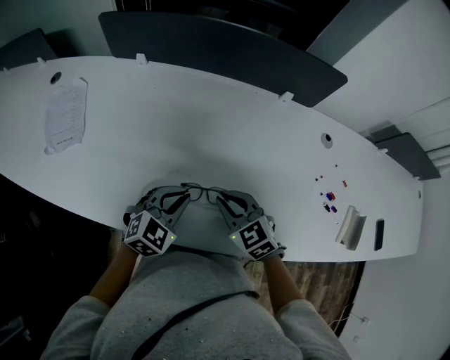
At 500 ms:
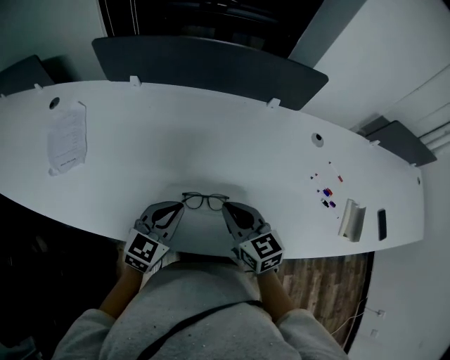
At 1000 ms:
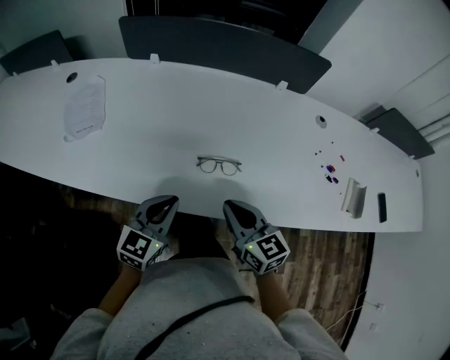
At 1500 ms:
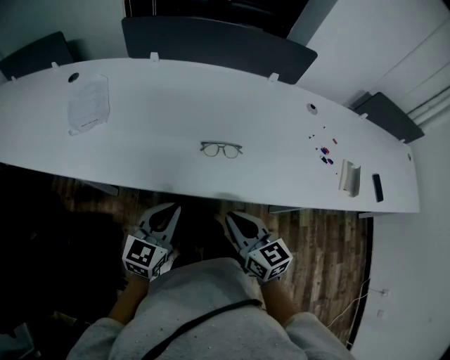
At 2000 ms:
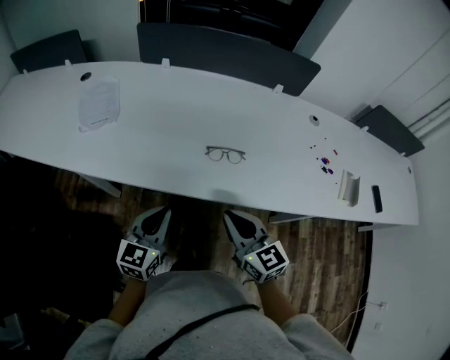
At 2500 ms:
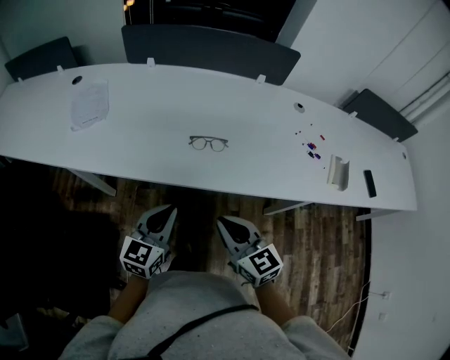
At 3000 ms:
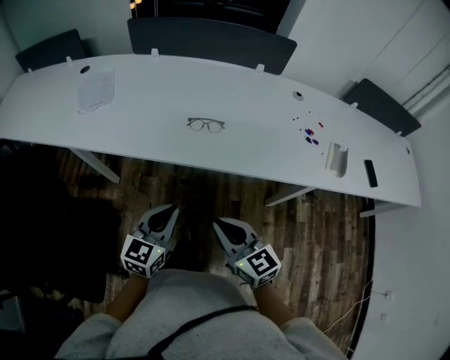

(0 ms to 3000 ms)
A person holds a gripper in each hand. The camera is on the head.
0 ms - 1500 ms: The left gripper heads backward and to the left, covering some 25 cm, and changes its angle by approximately 30 degrees. Meanwhile the right gripper heads backward, covering approximately 25 cm, and rotates some 30 degrees.
1500 ms - 3000 ms: The right gripper heads backward, covering roughly 15 cm. Meanwhile the left gripper moves backward and to the right, some 20 cm.

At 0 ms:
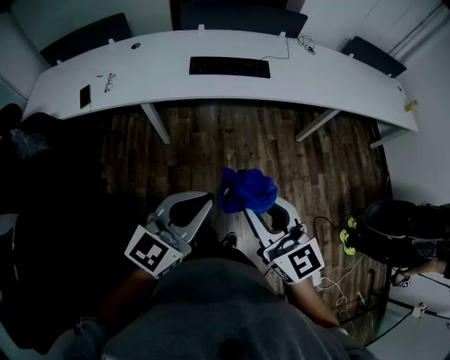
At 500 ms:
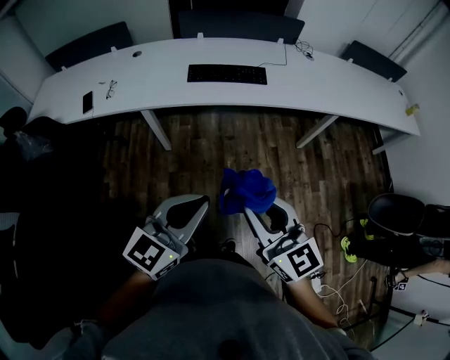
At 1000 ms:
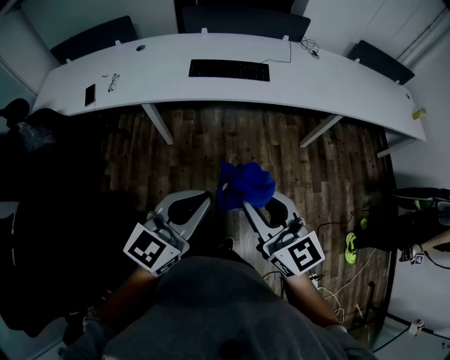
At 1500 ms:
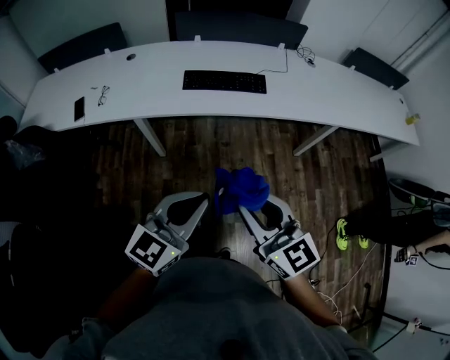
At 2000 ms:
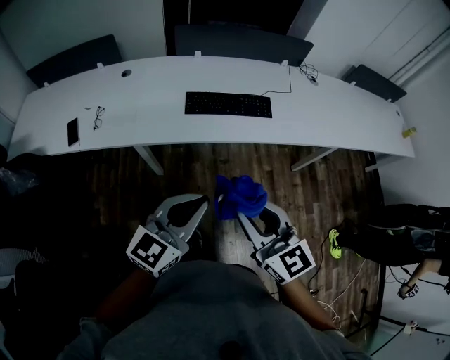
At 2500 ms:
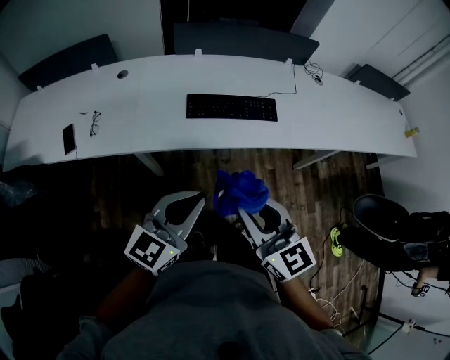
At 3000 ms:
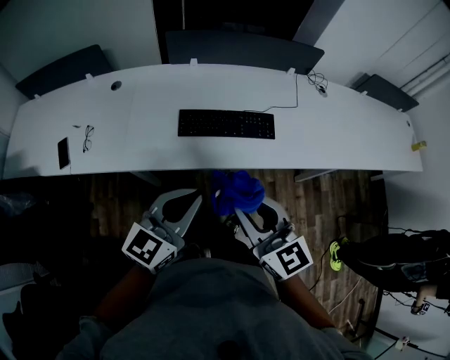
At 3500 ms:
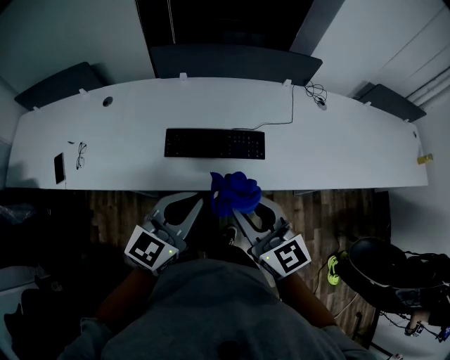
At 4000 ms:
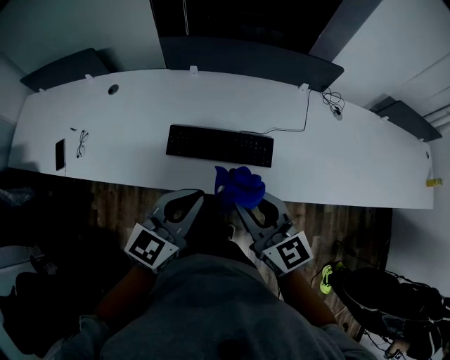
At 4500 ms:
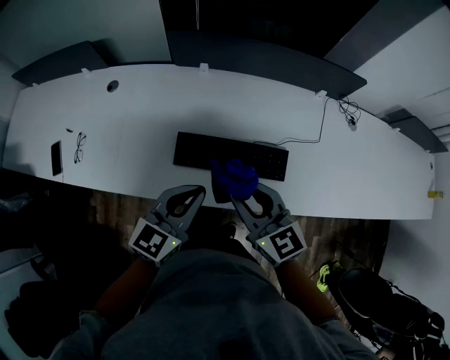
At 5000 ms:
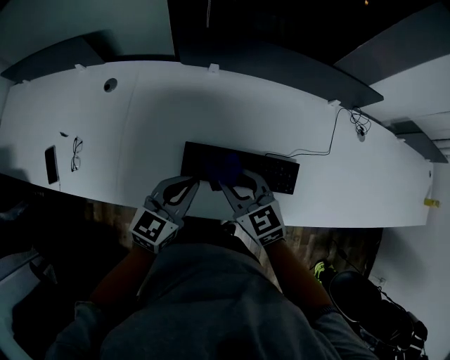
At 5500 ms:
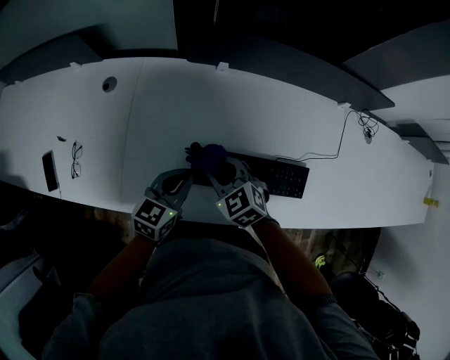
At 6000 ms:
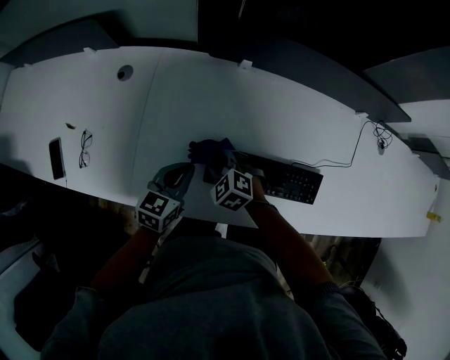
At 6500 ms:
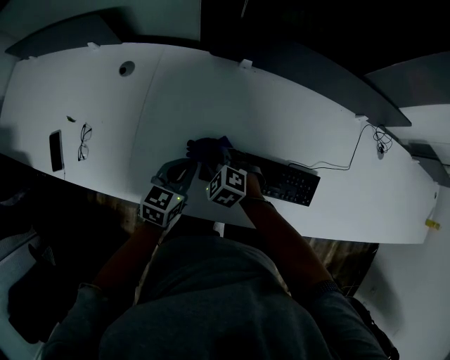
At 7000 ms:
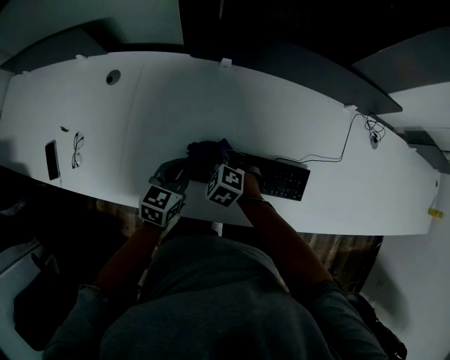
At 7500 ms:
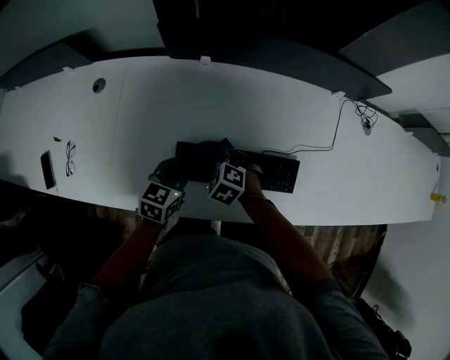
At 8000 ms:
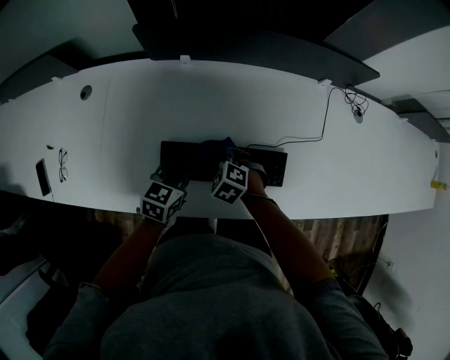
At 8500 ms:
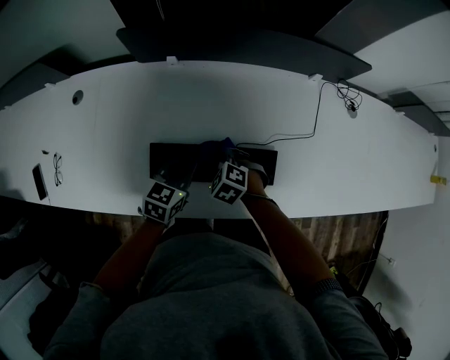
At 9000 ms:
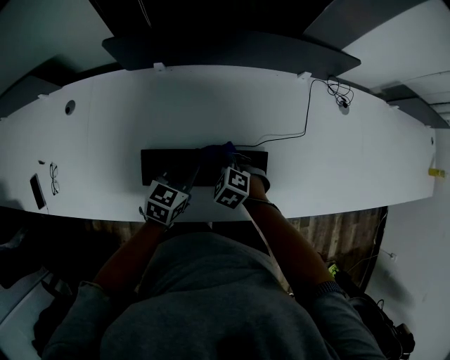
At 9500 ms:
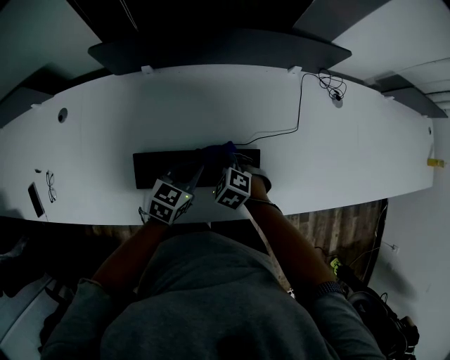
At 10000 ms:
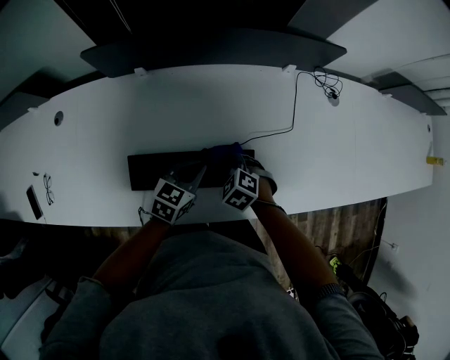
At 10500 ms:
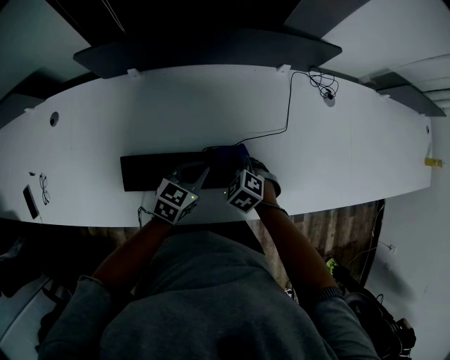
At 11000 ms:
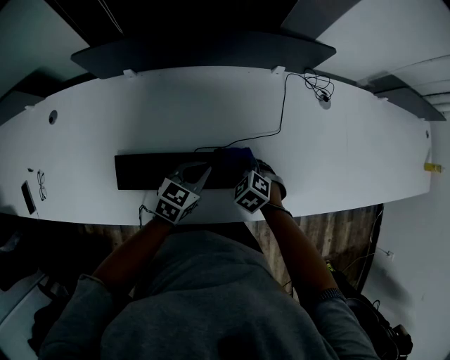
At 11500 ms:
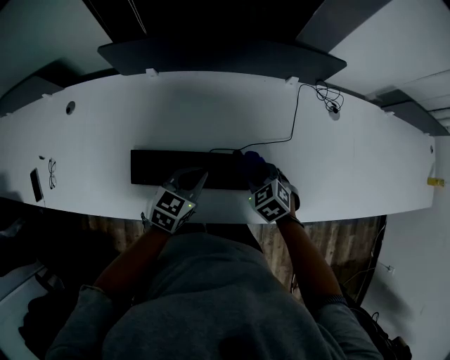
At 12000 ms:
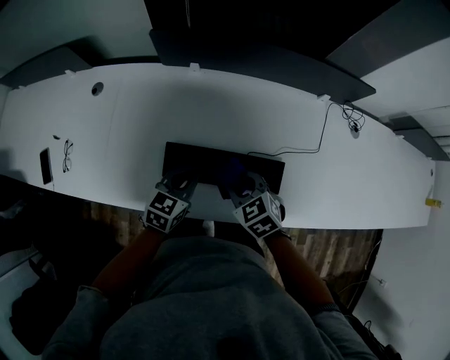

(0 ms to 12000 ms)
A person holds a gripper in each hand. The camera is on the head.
0 ms - 2000 ms: Both grippers move forward, about 20 cm.
2000 ms - 4000 ms: The two grippers go about 30 cm forward.
4000 ms - 6000 ms: The right gripper moves downward, forward and to the left, some 50 cm, and points its fingers approximately 50 degrees further downward. Meanwhile the left gripper moves forward, downward and to the left, approximately 40 cm, and rotates roughly 20 degrees.
6000 ms - 8000 ms: The two grippers go about 15 cm to the right.
8000 ms - 10000 ms: Both grippers travel together to the right, approximately 15 cm.
10000 ms - 12000 ms: The right gripper moves upward and to the left, about 15 cm, while the left gripper goes roughly 15 cm to the left.

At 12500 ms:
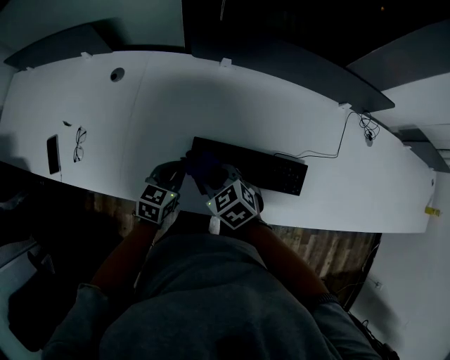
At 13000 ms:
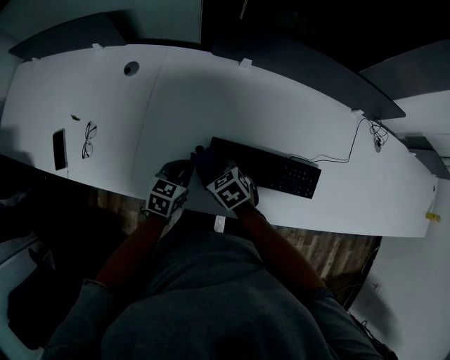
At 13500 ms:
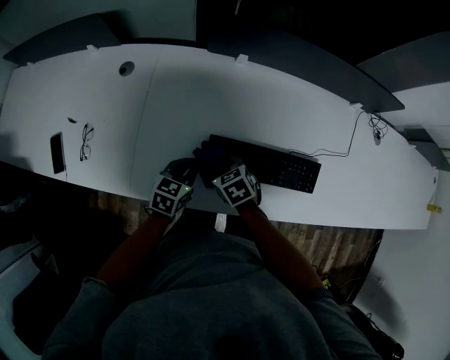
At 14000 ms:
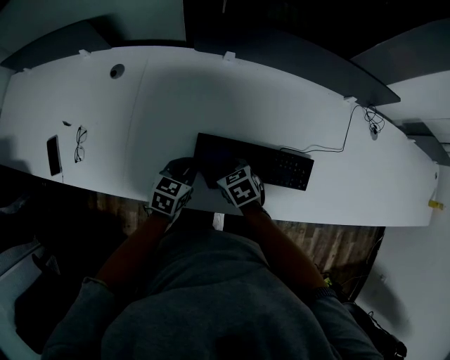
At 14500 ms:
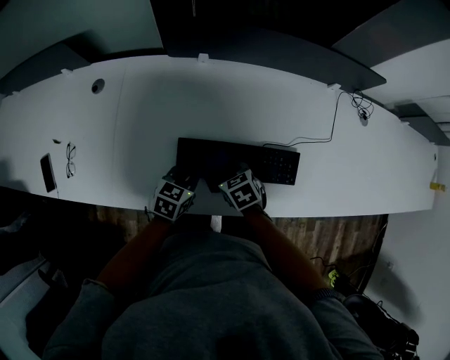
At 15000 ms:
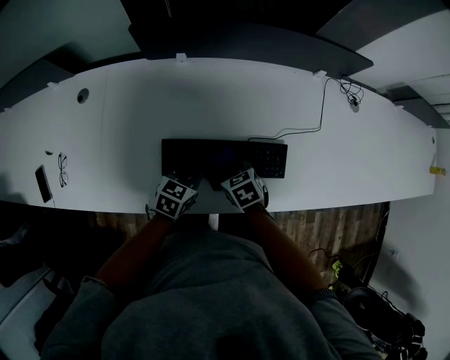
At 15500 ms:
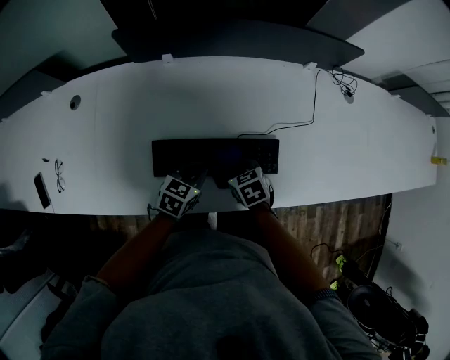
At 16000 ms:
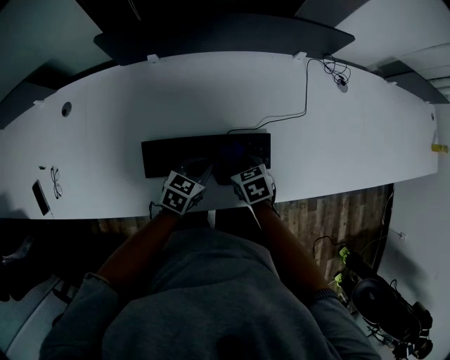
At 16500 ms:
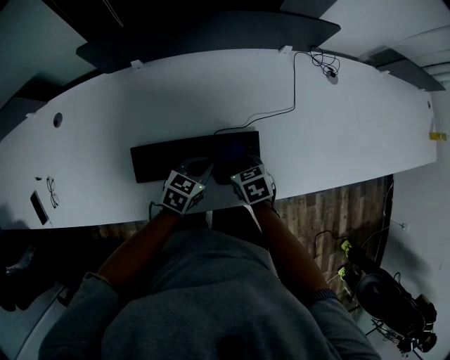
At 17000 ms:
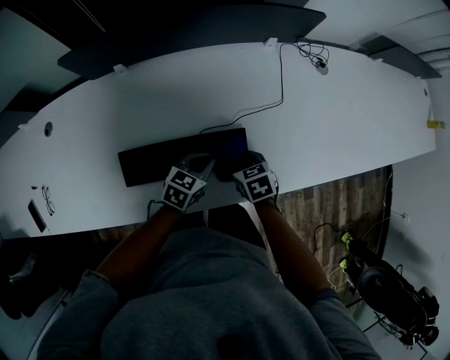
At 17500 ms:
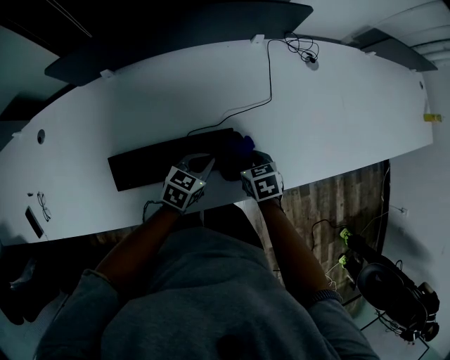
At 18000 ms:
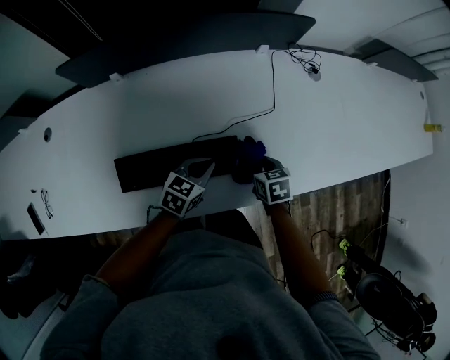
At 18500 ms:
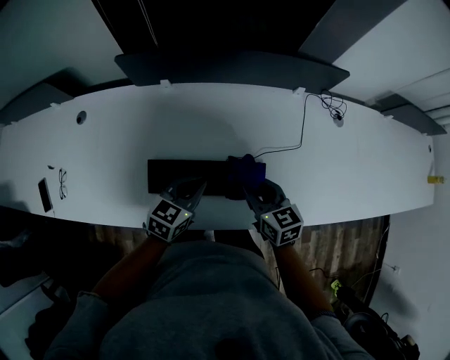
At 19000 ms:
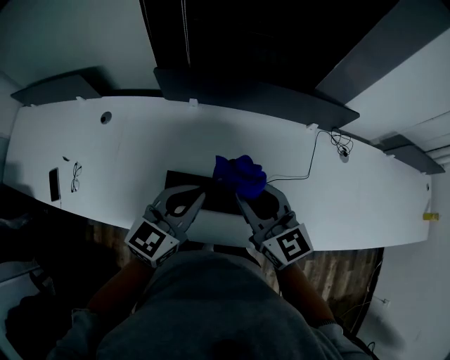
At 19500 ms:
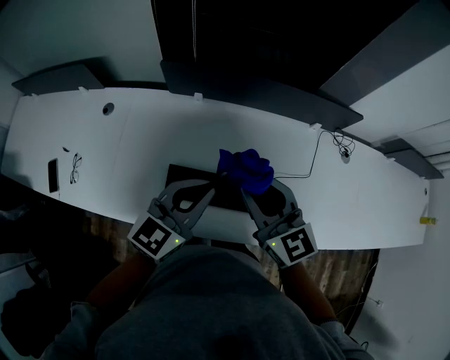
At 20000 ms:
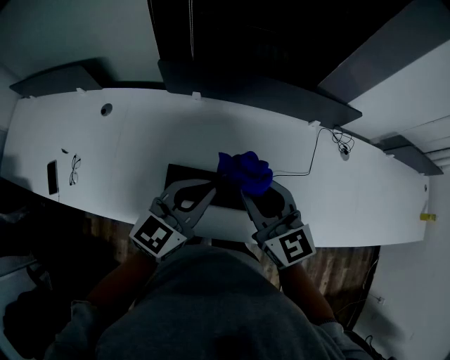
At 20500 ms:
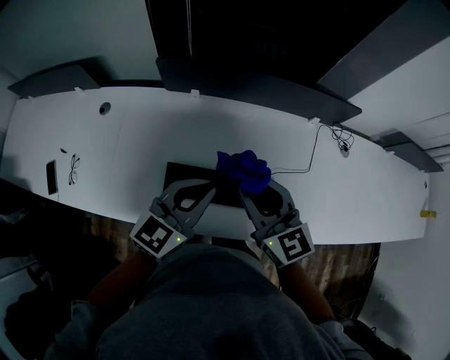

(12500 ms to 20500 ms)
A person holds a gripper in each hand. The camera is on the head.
12500 ms - 14500 ms: The right gripper heads to the right and downward, covering some 15 cm, and turns by roughly 20 degrees, while the left gripper moves to the right, approximately 10 cm.
14500 ms - 16500 ms: Both grippers travel together to the right, about 20 cm.
16500 ms - 18500 ms: The left gripper heads upward and to the left, covering roughly 10 cm. The right gripper goes about 15 cm upward, and changes its angle by about 30 degrees.
18500 ms - 20500 ms: The right gripper is displaced upward and to the left by some 20 cm, and rotates approximately 30 degrees; the left gripper heads upward, covering approximately 20 cm, and changes its angle by some 20 degrees.

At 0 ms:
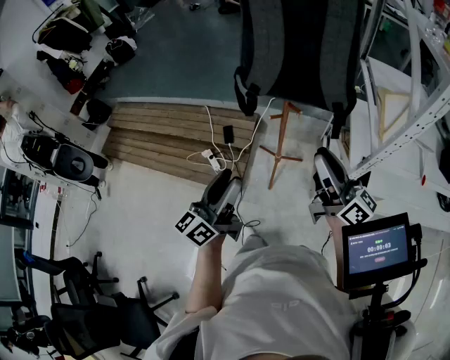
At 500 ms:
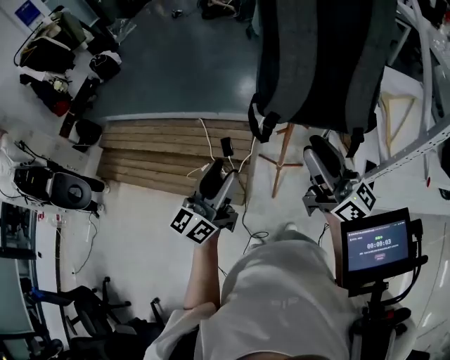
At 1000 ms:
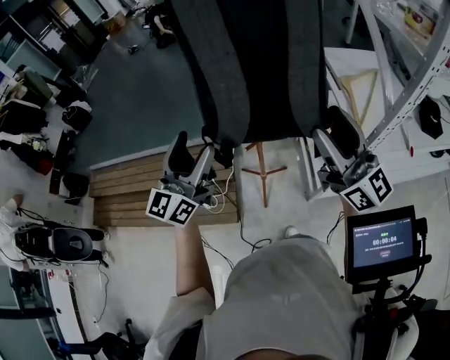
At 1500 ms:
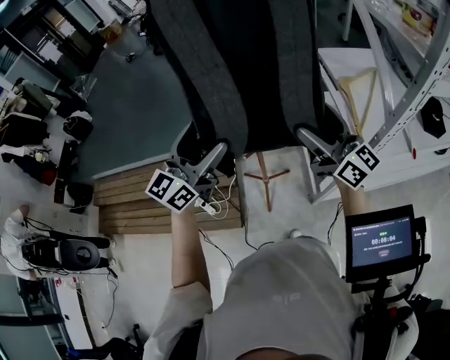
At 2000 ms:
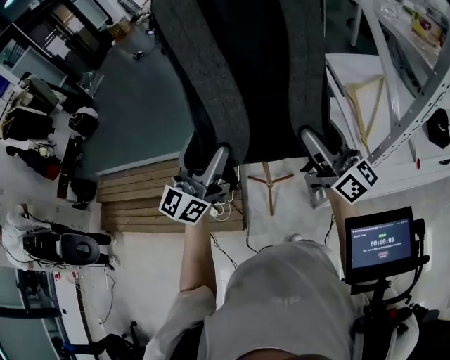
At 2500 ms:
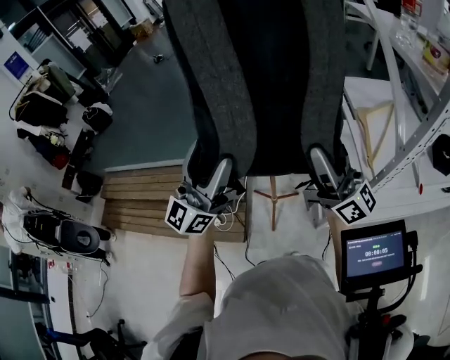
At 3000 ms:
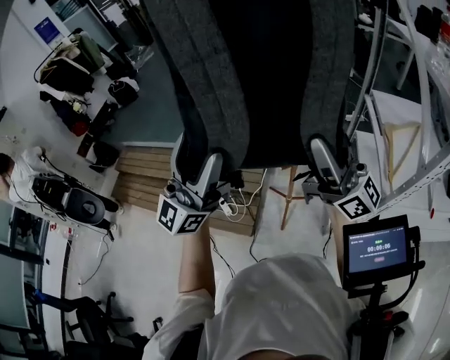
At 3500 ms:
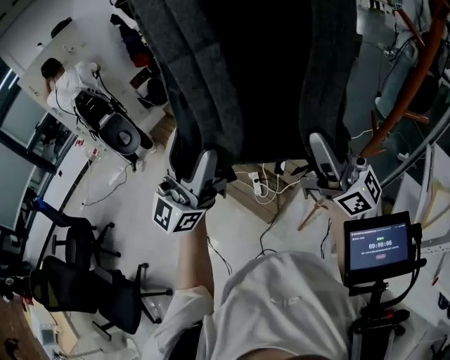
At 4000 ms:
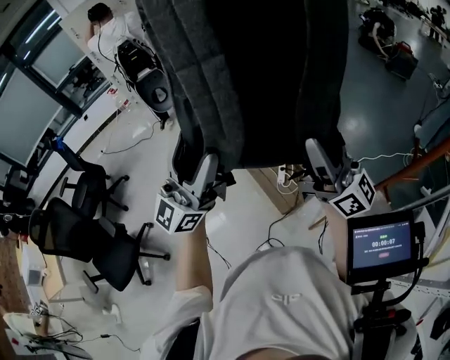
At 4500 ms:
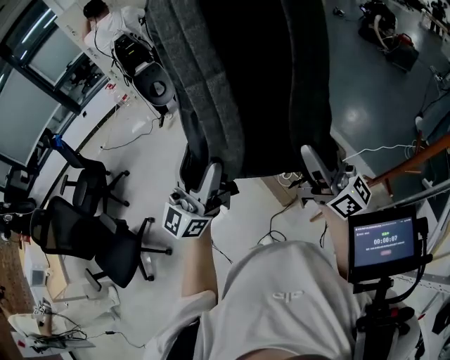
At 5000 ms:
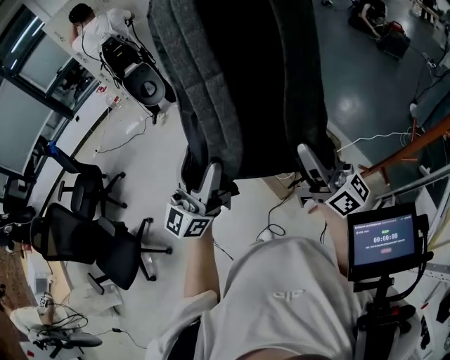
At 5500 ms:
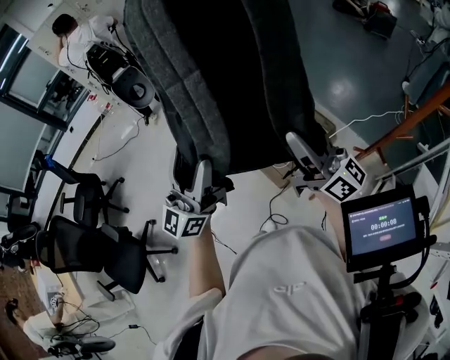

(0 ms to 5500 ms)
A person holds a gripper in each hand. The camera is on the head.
0 ms - 2000 ms: The right gripper moves forward and upward, approximately 15 cm, travels to the left and back again, some 10 cm each way, turns by about 30 degrees, and opens its fingers, while the left gripper shifts some 25 cm forward and upward, rotates some 30 degrees, and opens.
2000 ms - 3500 ms: The right gripper ends up some 30 cm from where it was, and turns by some 50 degrees, while the left gripper changes place by about 35 cm, and swivels roughly 50 degrees.
3500 ms - 5500 ms: The left gripper moves to the left and downward, roughly 15 cm, and rotates some 20 degrees, while the right gripper goes roughly 20 cm to the left, downward and forward, and swivels roughly 30 degrees.
